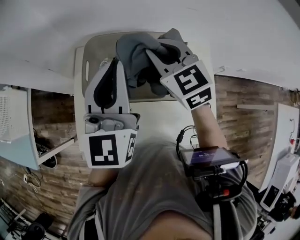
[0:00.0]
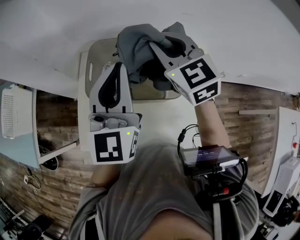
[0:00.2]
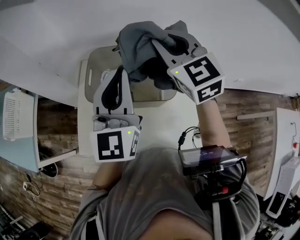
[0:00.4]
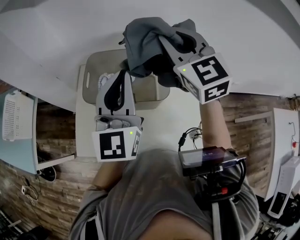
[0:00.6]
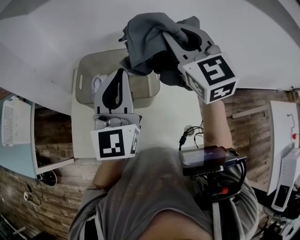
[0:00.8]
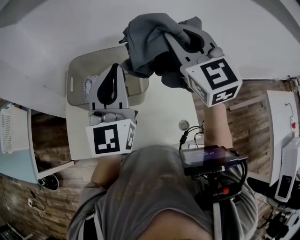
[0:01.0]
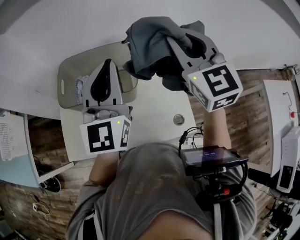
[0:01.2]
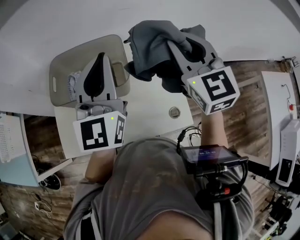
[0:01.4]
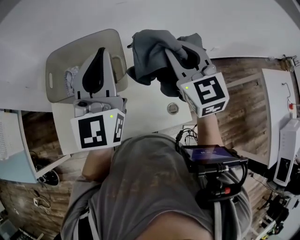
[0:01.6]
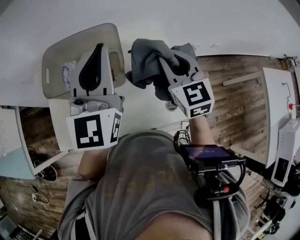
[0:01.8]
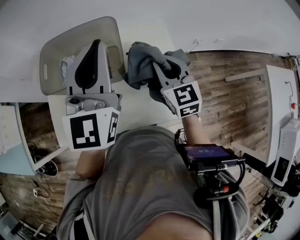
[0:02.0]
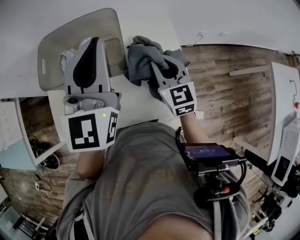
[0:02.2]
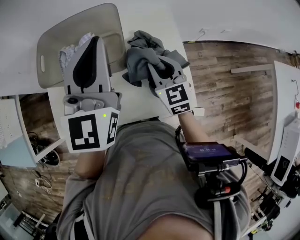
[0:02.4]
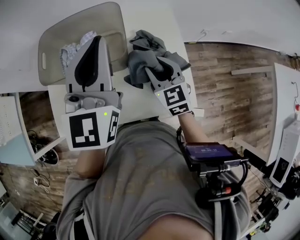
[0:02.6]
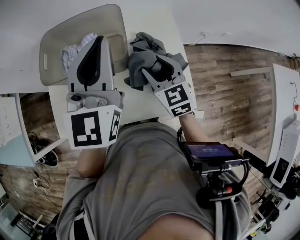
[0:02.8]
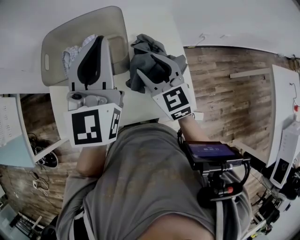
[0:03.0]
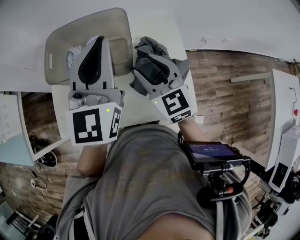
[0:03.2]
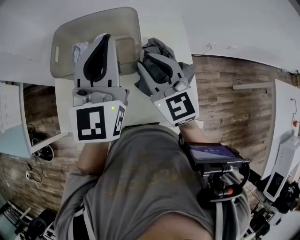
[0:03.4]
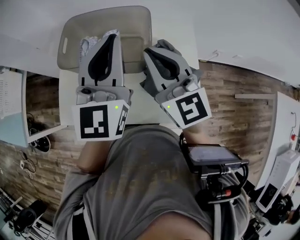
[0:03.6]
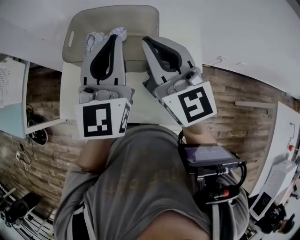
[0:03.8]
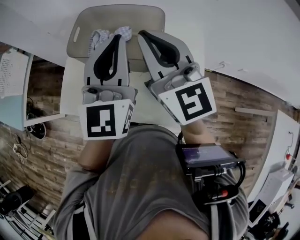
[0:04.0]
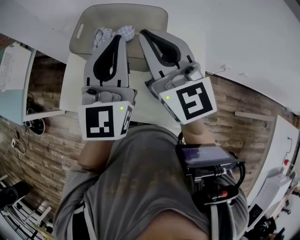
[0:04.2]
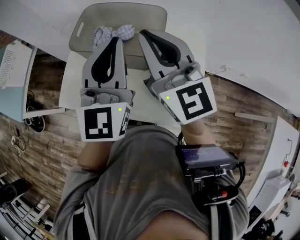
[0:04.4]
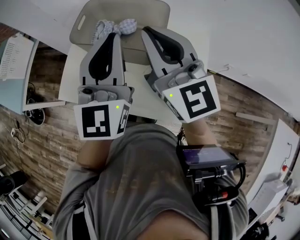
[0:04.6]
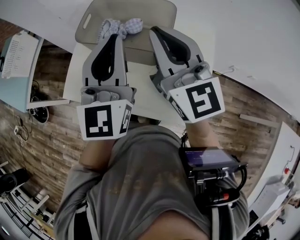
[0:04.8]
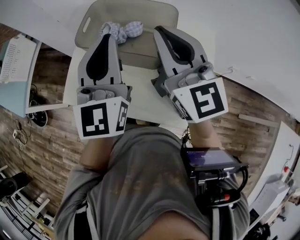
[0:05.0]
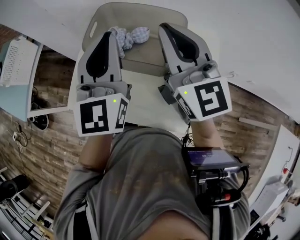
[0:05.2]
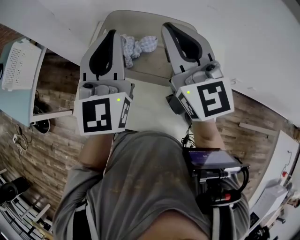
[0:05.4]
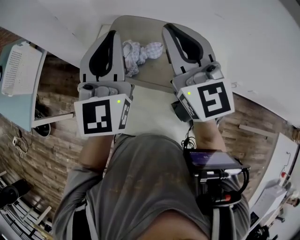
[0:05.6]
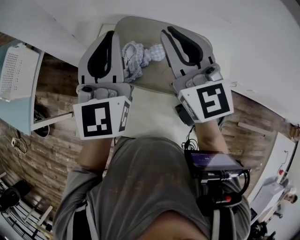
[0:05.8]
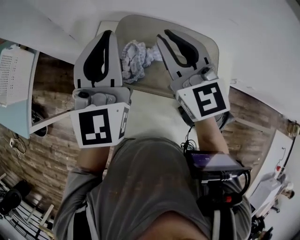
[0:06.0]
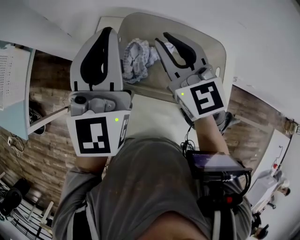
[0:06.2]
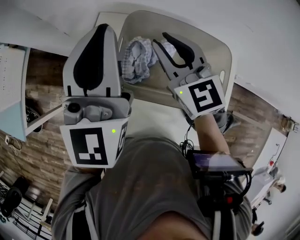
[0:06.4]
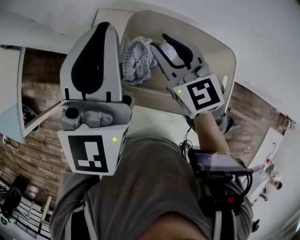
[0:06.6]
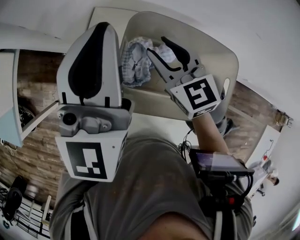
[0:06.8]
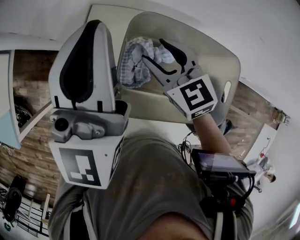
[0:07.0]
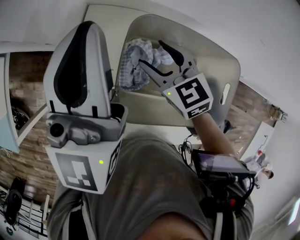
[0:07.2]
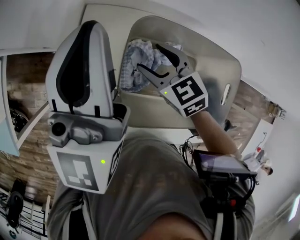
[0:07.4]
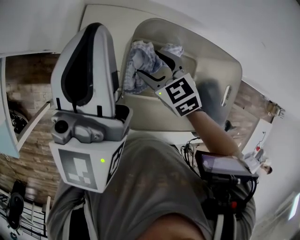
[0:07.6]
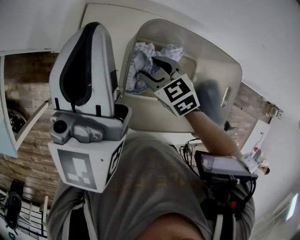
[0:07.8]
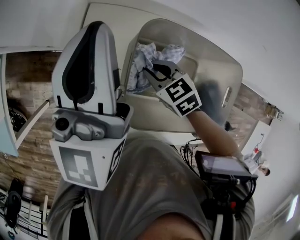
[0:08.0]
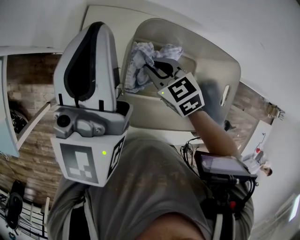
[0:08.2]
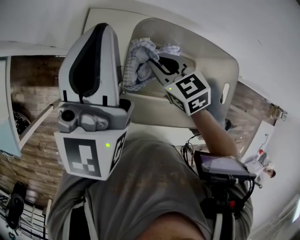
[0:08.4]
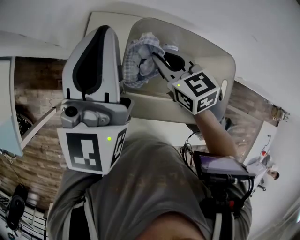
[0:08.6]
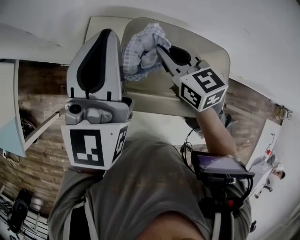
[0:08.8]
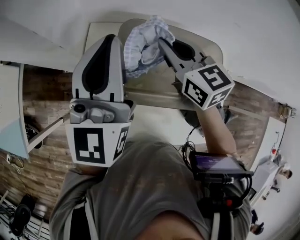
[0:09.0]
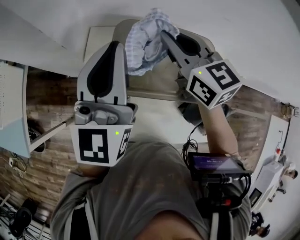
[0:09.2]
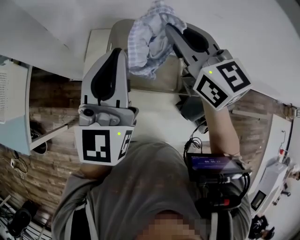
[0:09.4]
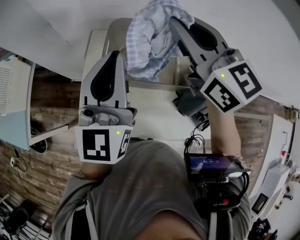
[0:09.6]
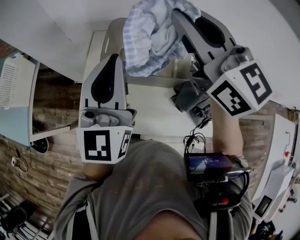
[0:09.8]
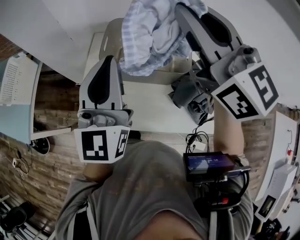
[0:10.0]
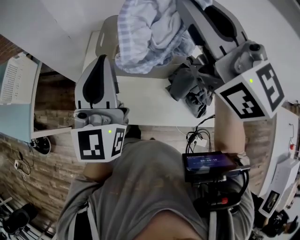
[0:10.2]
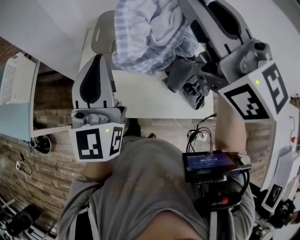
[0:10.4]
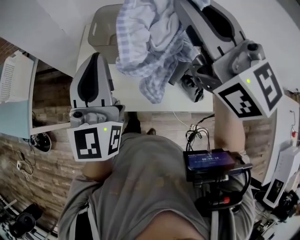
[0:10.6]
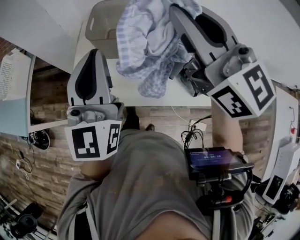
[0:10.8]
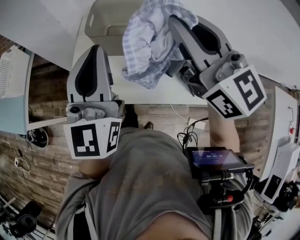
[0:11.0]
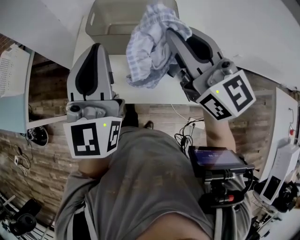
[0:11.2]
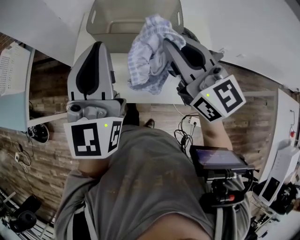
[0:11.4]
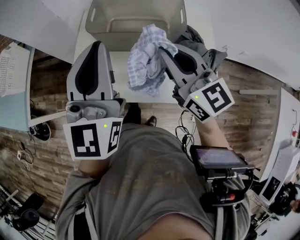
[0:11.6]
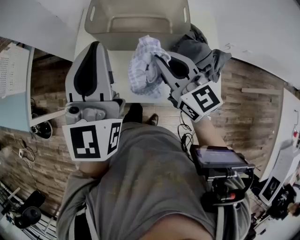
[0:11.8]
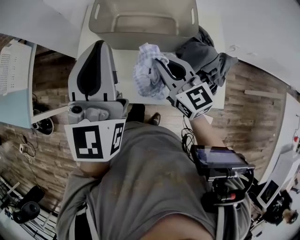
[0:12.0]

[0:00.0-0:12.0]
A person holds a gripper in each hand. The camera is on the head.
0:00.0 to 0:01.6: The right gripper moves to the right and backward, about 25 cm, and changes its angle by approximately 20 degrees; the left gripper goes roughly 15 cm to the right and backward.
0:01.6 to 0:03.0: The right gripper shifts about 15 cm downward and to the left, and opens up.
0:03.0 to 0:04.4: The left gripper shifts some 5 cm to the left. Meanwhile the right gripper is displaced upward and to the left by roughly 20 cm, changes its angle by approximately 30 degrees, and closes its fingers.
0:04.4 to 0:06.0: Both grippers move forward and to the left, some 20 cm.
0:06.0 to 0:07.6: The left gripper heads forward and downward, covering approximately 10 cm, and rotates some 20 degrees; the right gripper travels downward by approximately 25 cm, tips its fingers downward by about 50 degrees, and opens up.
0:07.6 to 0:09.0: The left gripper goes some 5 cm backward. The right gripper is displaced upward by about 20 cm, turns by approximately 30 degrees, and closes its fingers.
0:09.0 to 0:10.4: The left gripper heads backward, covering roughly 25 cm; the right gripper heads upward and backward, covering about 40 cm, and angles its fingers upward, by roughly 30 degrees.
0:10.4 to 0:12.0: The right gripper heads downward, covering some 35 cm, and rotates some 30 degrees.

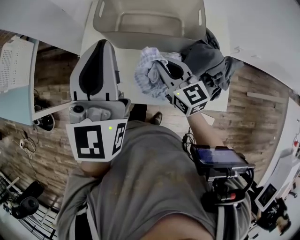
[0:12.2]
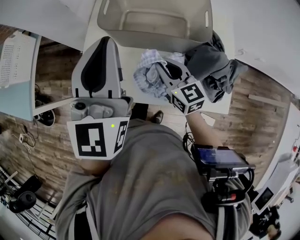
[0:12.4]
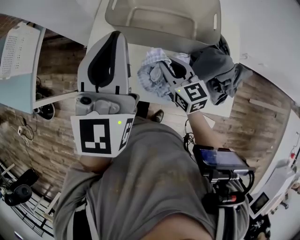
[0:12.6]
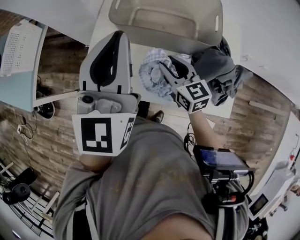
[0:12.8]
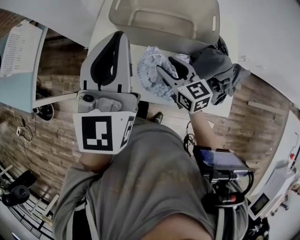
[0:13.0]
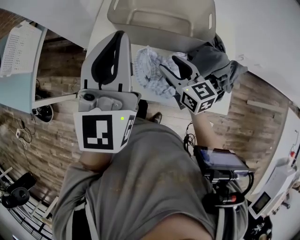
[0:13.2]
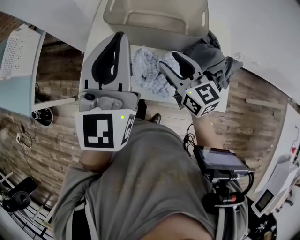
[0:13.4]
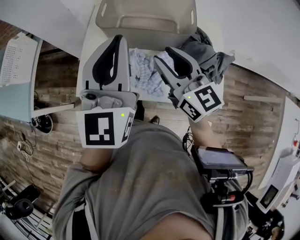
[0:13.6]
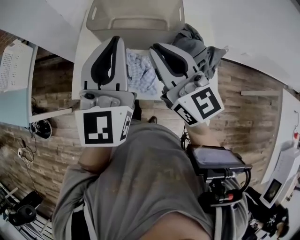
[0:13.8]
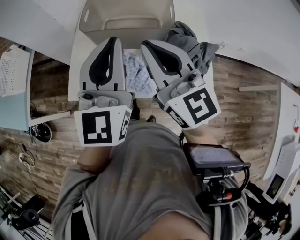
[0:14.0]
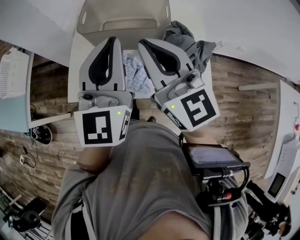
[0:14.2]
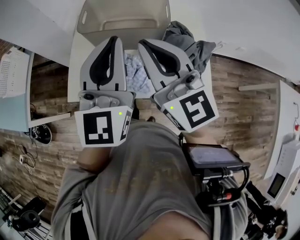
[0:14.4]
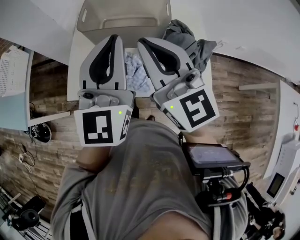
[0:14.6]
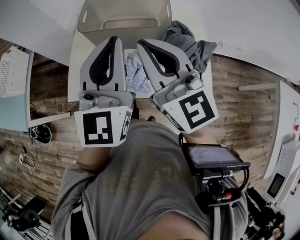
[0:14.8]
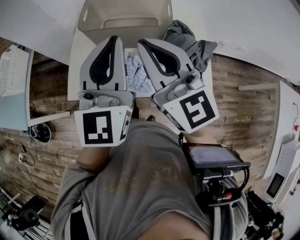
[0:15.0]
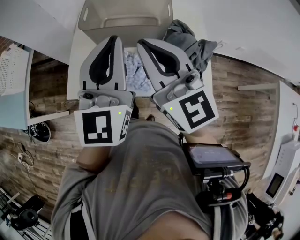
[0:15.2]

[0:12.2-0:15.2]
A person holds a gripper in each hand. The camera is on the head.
0:12.2 to 0:13.8: The right gripper travels upward by some 15 cm, and opens and closes again; the left gripper shifts roughly 5 cm backward.
0:13.8 to 0:15.2: The grippers make only small movements.

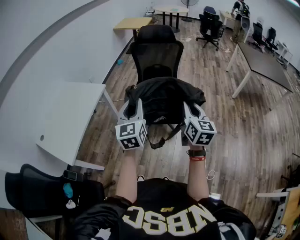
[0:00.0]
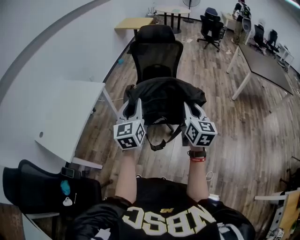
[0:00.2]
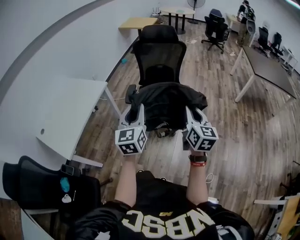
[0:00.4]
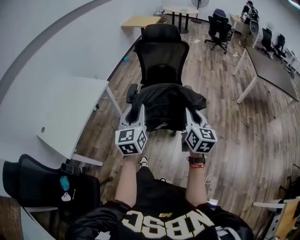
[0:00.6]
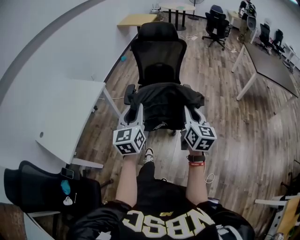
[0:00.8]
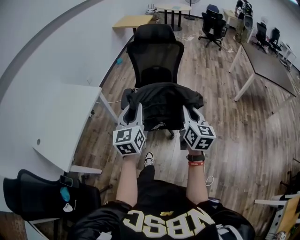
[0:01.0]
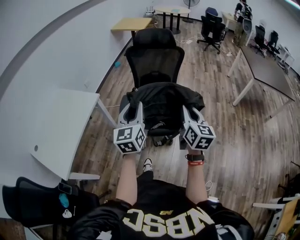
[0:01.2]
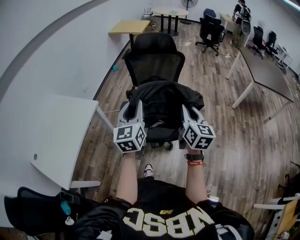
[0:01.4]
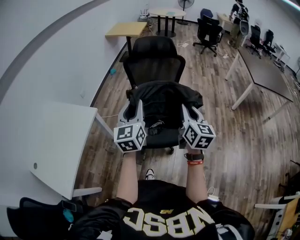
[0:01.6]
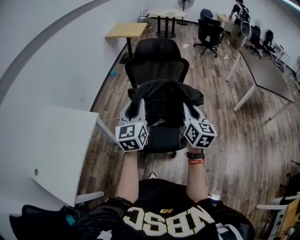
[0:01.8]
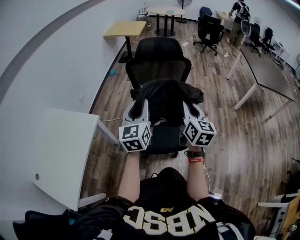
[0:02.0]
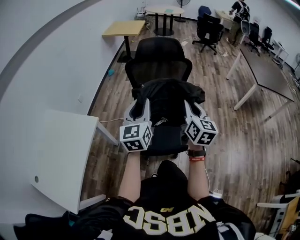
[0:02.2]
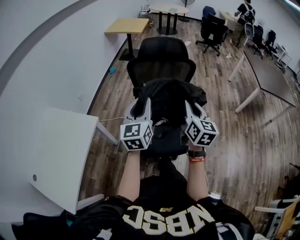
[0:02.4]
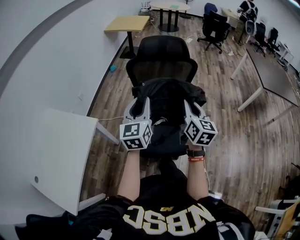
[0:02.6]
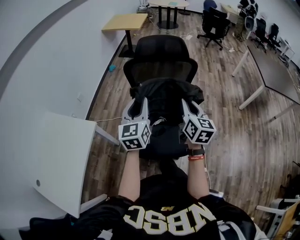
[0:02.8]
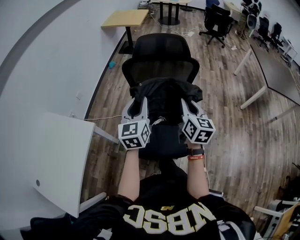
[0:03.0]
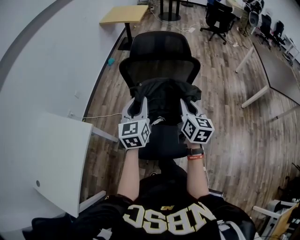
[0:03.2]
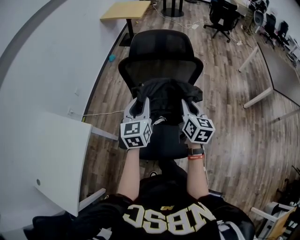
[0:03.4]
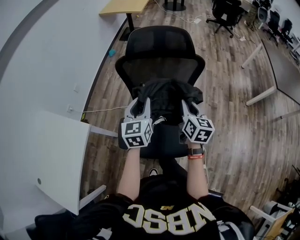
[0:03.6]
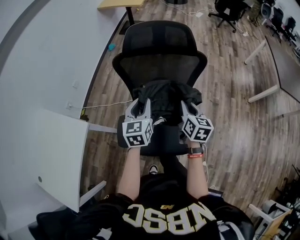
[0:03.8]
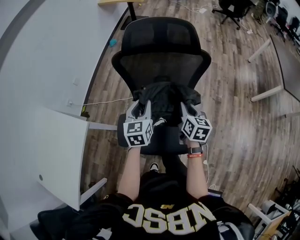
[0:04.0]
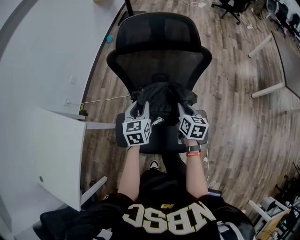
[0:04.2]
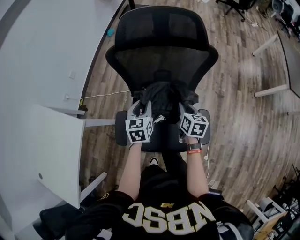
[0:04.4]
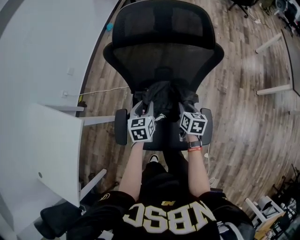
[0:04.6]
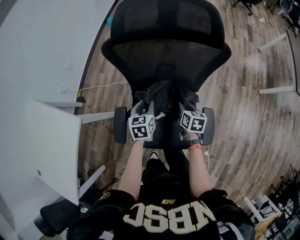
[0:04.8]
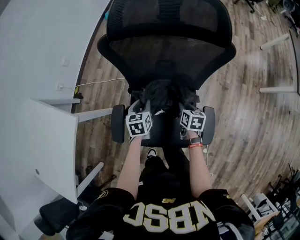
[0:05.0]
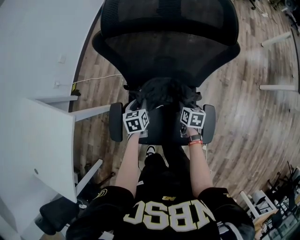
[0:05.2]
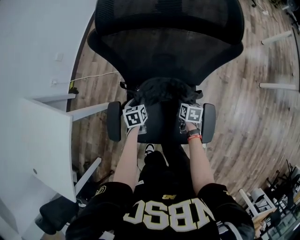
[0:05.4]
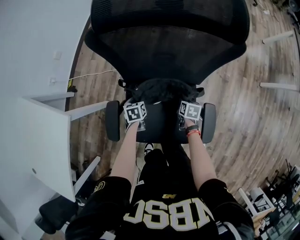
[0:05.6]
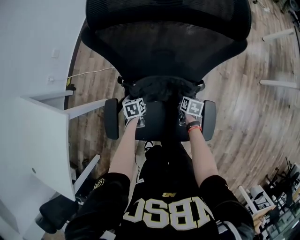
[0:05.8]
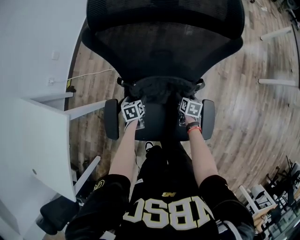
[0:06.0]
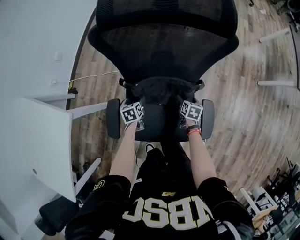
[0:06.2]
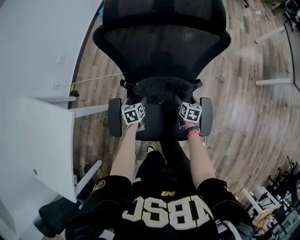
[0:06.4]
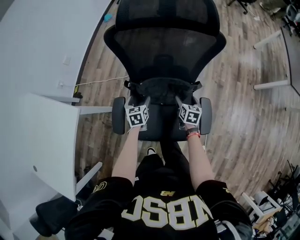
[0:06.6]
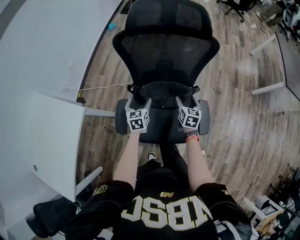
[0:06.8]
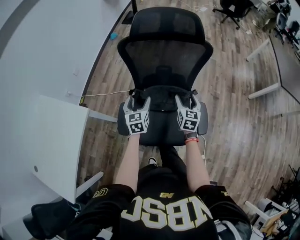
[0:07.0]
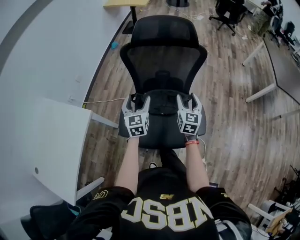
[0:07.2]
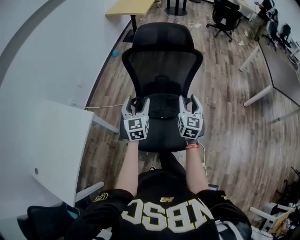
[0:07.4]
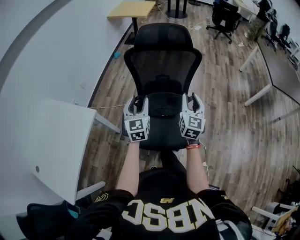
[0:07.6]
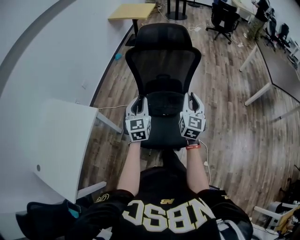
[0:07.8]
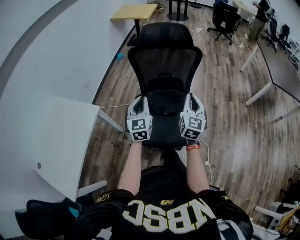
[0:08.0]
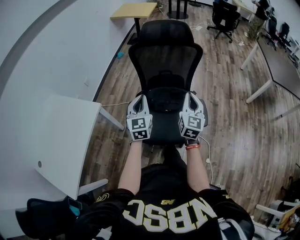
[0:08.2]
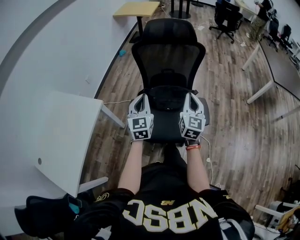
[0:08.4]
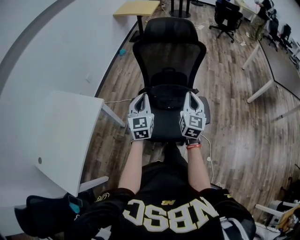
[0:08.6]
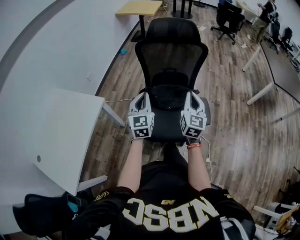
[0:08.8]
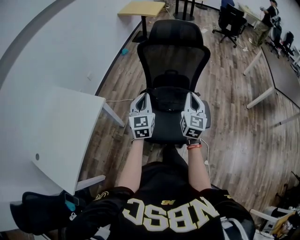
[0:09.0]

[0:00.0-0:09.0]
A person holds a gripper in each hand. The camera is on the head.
0:00.0 to 0:01.6: The two grippers go some 20 cm forward.
0:01.6 to 0:03.0: The two grippers go about 20 cm forward.
0:03.0 to 0:04.4: The grippers both shift downward and forward by approximately 30 cm. The right gripper changes its angle by approximately 30 degrees. The left gripper rotates some 30 degrees.
0:04.4 to 0:06.0: Both grippers travel together downward, roughly 25 cm. The right gripper turns by approximately 20 degrees, and opens. Meanwhile the left gripper rotates about 30 degrees, and opens.
0:06.0 to 0:07.6: Both grippers move upward, about 40 cm. The right gripper tilts its fingers approximately 50 degrees upward, and closes its fingers; the left gripper tips its fingers upward by some 50 degrees, and closes its fingers.
0:07.6 to 0:09.0: Both grippers travel together backward, some 5 cm. The right gripper closes its fingers. Meanwhile the left gripper closes.
